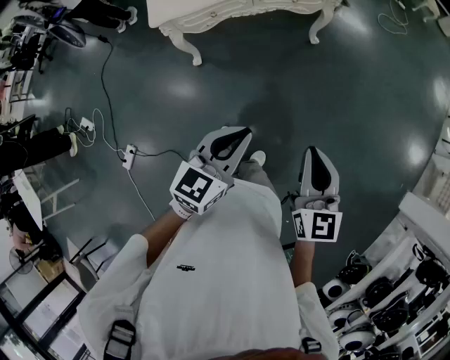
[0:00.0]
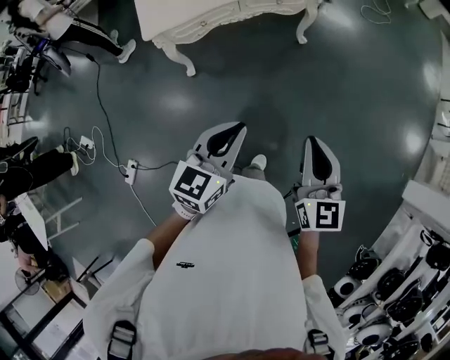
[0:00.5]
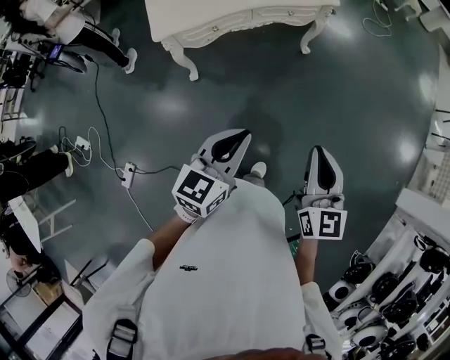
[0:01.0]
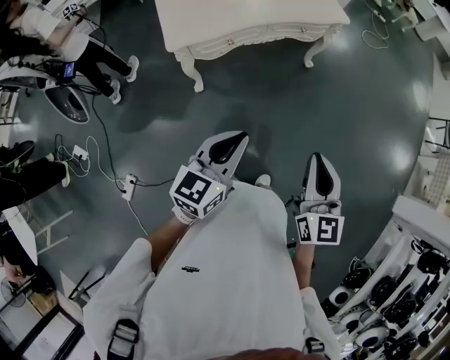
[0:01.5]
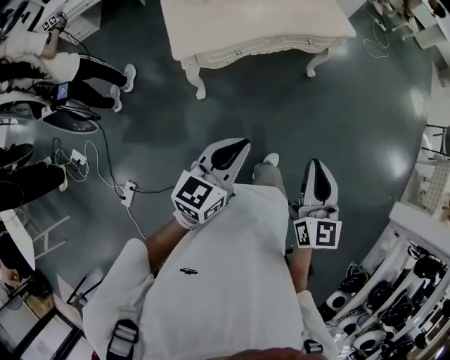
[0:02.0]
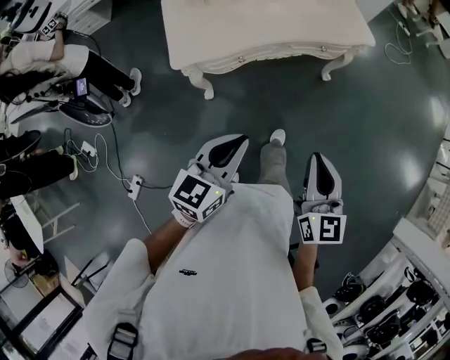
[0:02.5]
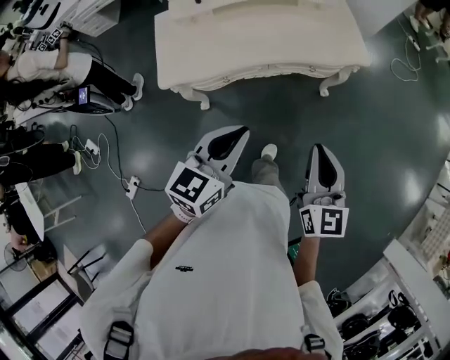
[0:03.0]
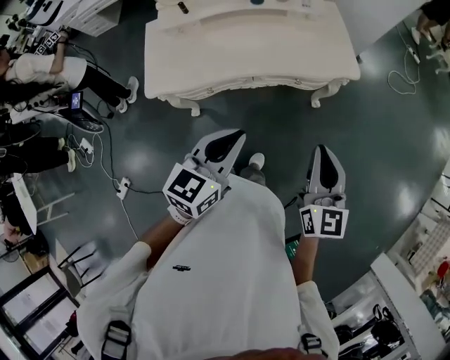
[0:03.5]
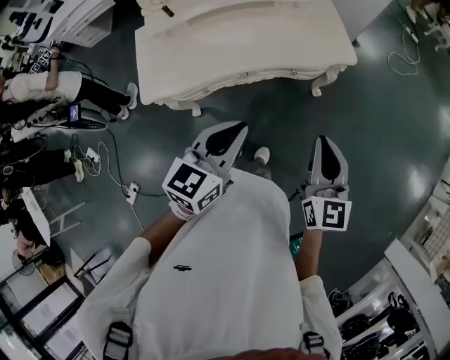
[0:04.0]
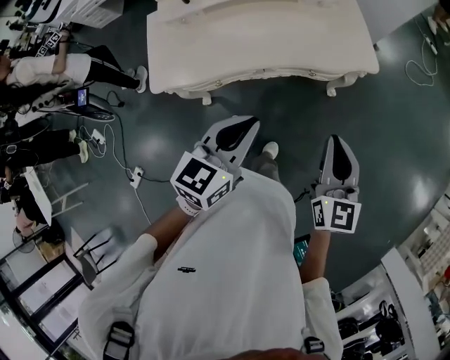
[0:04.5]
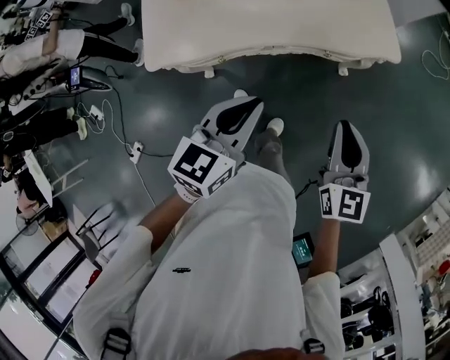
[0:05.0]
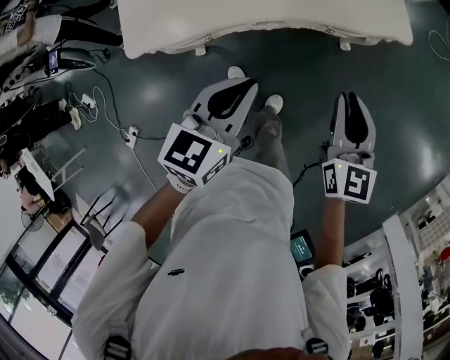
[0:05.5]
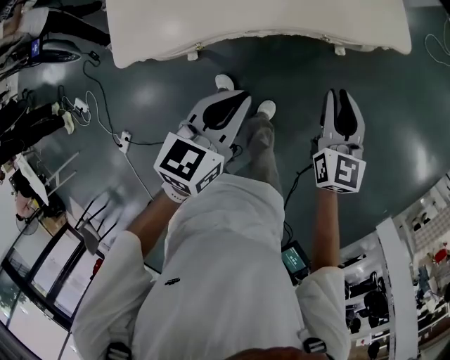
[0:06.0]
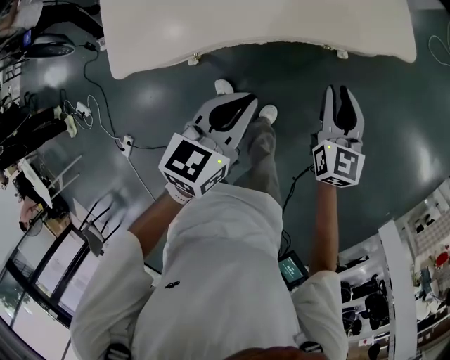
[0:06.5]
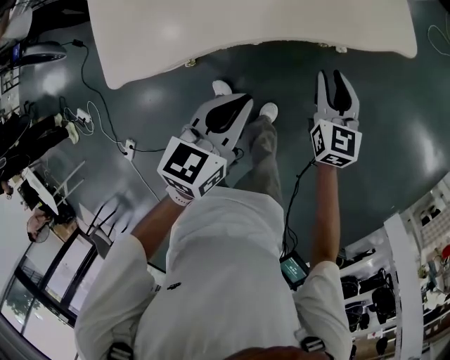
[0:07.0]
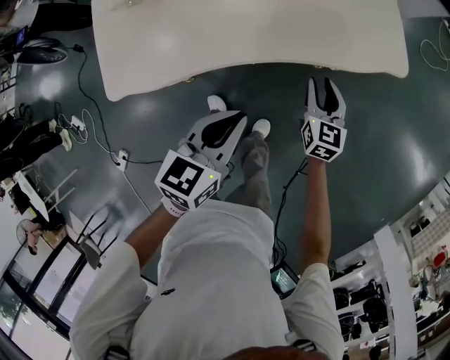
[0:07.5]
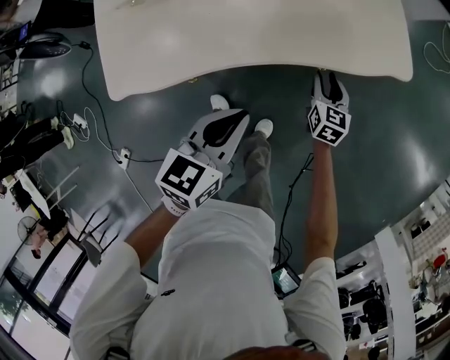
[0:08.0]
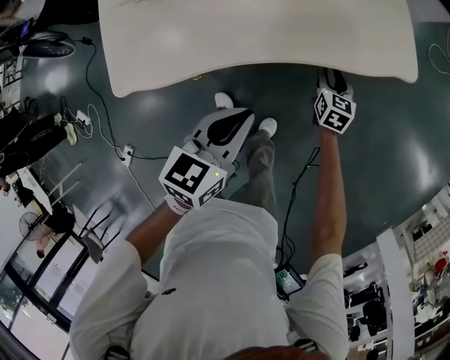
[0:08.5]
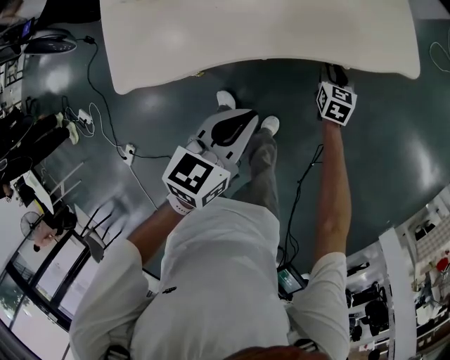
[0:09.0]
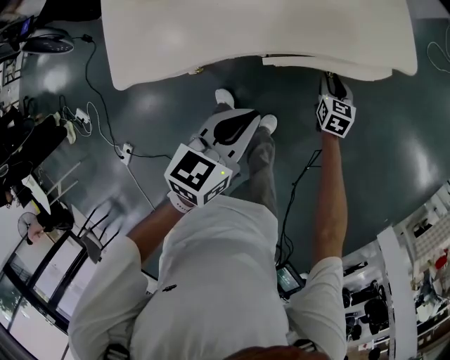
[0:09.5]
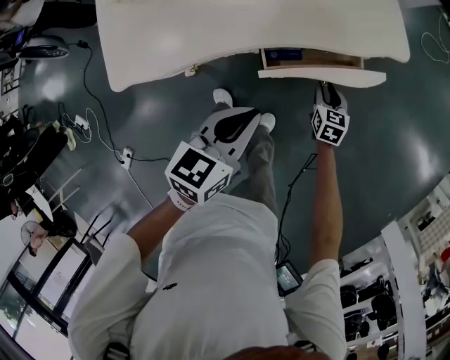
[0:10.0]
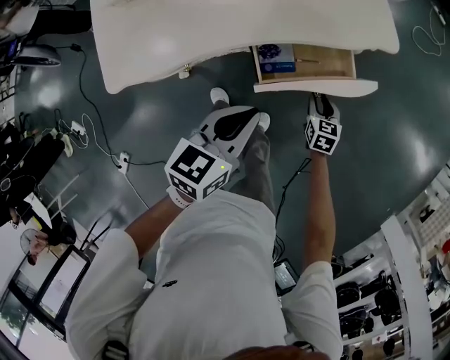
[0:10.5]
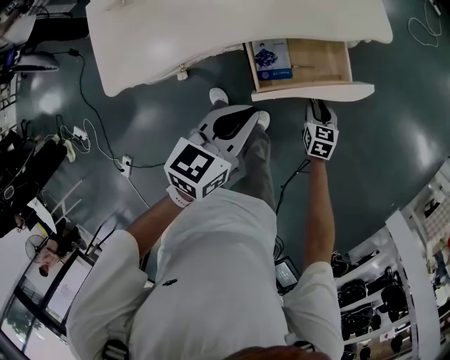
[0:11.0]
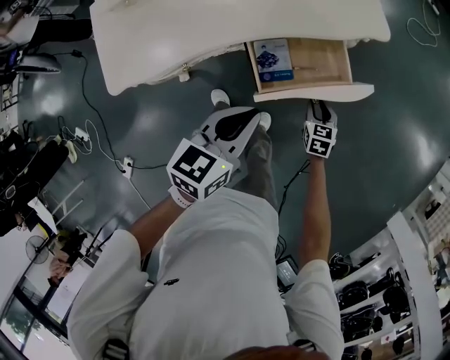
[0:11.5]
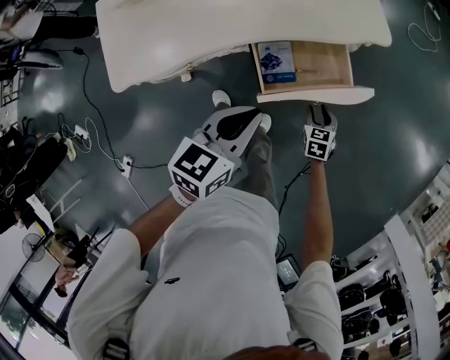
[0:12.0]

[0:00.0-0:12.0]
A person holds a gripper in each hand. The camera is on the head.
0:00.0 to 0:02.0: Both grippers travel together to the left, some 20 cm.
0:02.0 to 0:04.0: Both grippers travel together forward and to the right, roughly 40 cm.
0:04.0 to 0:06.0: Both grippers travel together downward and forward, some 20 cm. The right gripper opens.
0:06.0 to 0:08.0: The right gripper is displaced downward and forward by some 25 cm. Meanwhile the left gripper goes roughly 5 cm forward.
0:08.0 to 0:10.0: The left gripper ends up some 5 cm from where it was. Meanwhile the right gripper travels backward and to the right by some 10 cm.
0:10.0 to 0:12.0: The right gripper heads backward and to the right, covering some 10 cm.

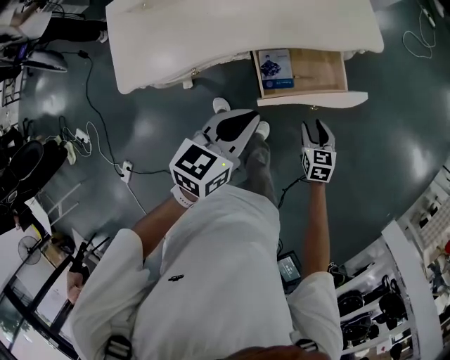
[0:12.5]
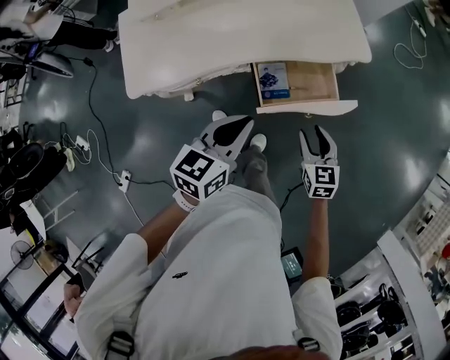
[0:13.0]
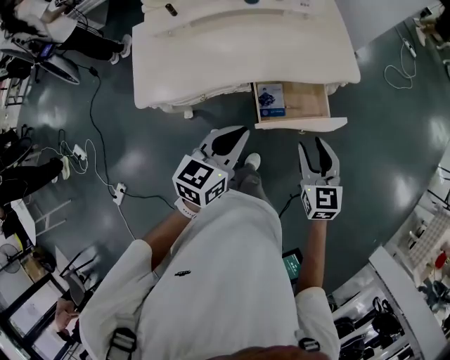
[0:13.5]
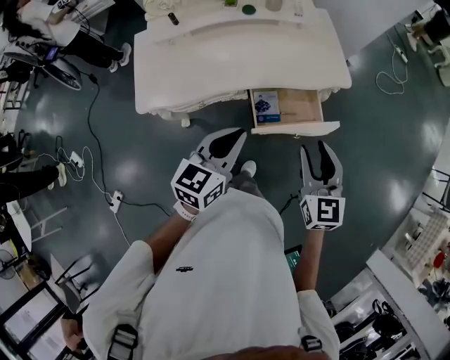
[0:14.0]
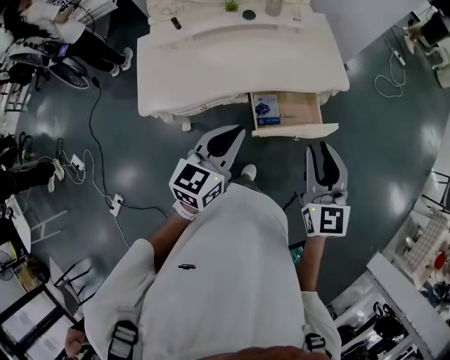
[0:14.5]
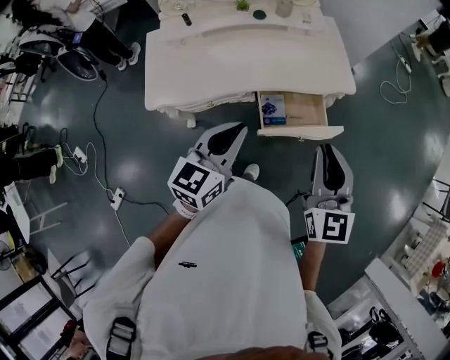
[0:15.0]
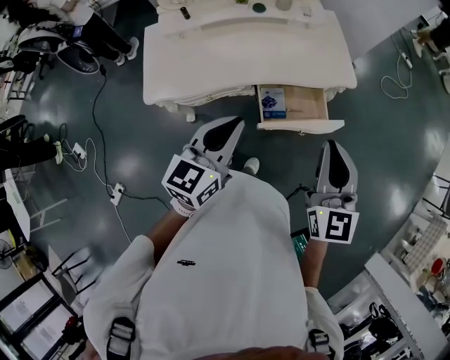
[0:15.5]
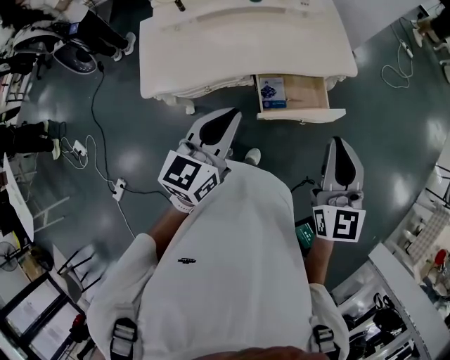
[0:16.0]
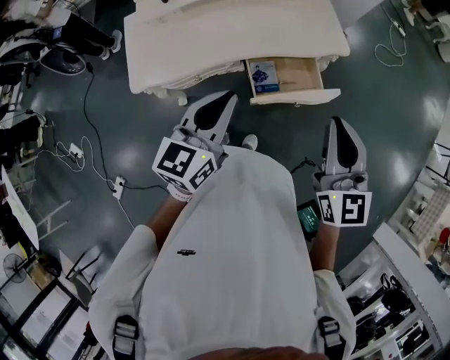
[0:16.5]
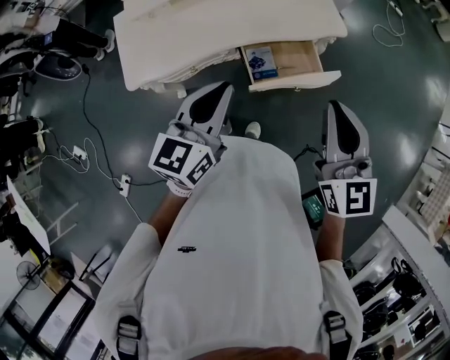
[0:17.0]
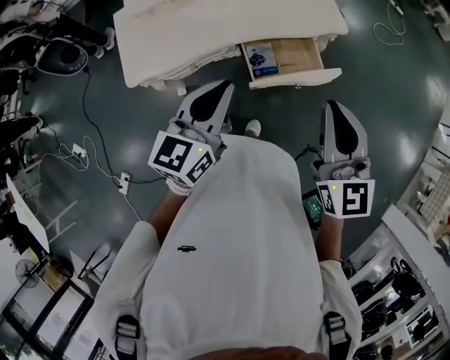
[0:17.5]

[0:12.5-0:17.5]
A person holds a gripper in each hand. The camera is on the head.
0:12.5 to 0:15.0: The right gripper is displaced upward by about 40 cm, tips its fingers upward by approximately 40 degrees, and closes; the left gripper shifts some 15 cm upward, and changes its angle by about 20 degrees.
0:15.0 to 0:17.5: There are only small adjustments of the grippers.

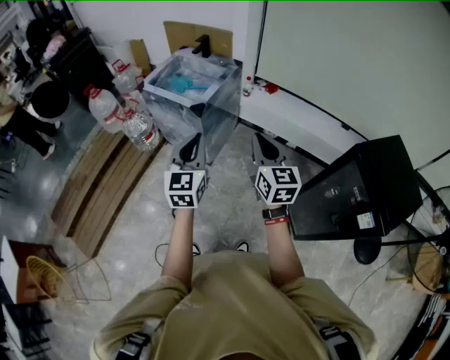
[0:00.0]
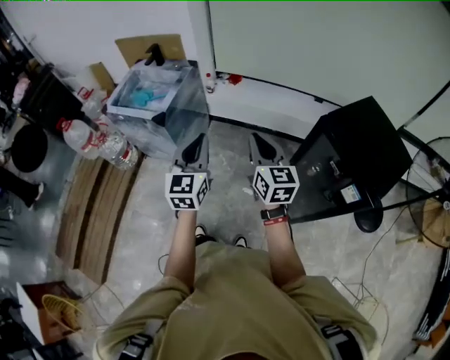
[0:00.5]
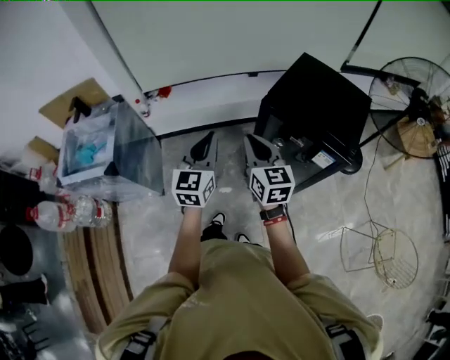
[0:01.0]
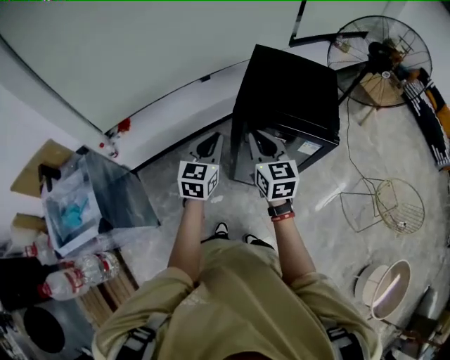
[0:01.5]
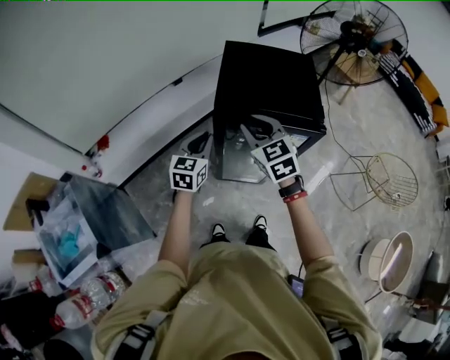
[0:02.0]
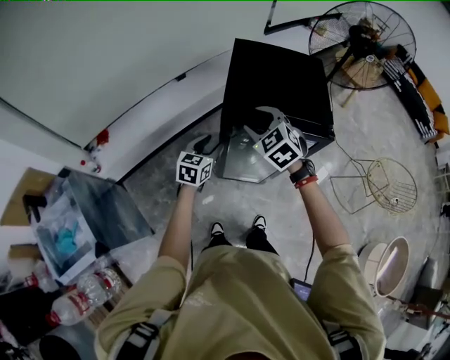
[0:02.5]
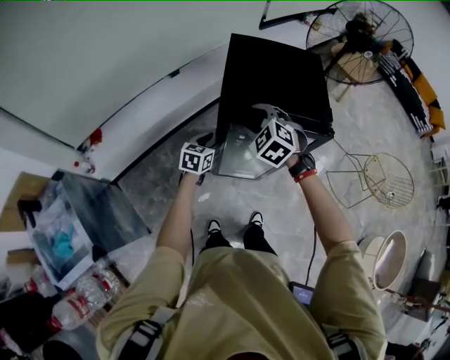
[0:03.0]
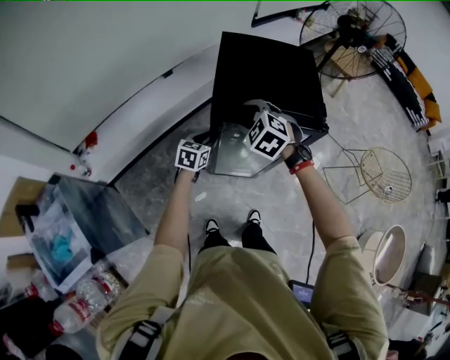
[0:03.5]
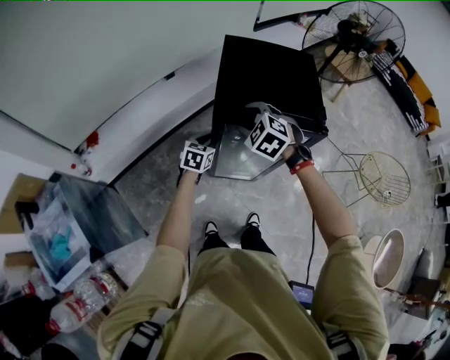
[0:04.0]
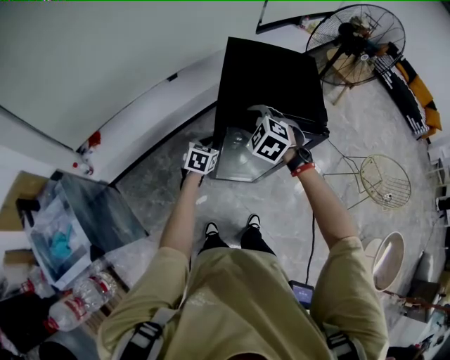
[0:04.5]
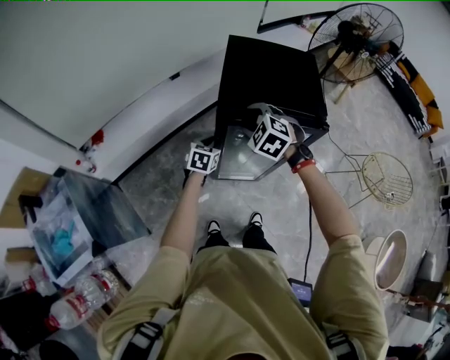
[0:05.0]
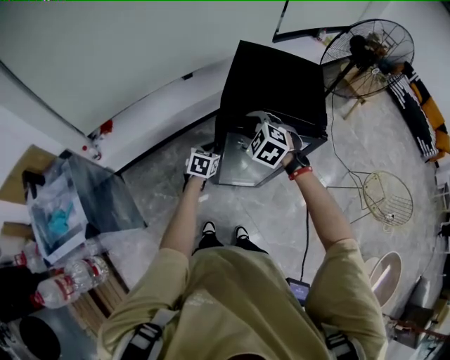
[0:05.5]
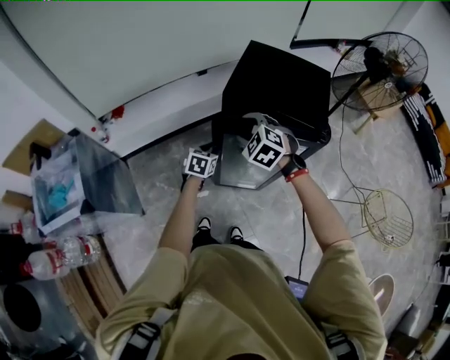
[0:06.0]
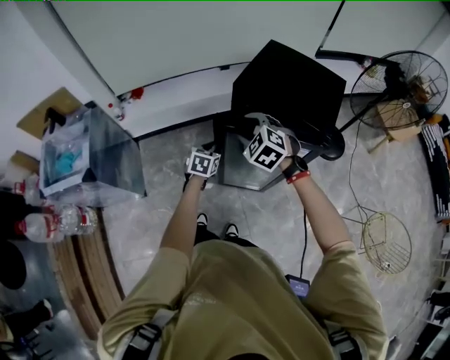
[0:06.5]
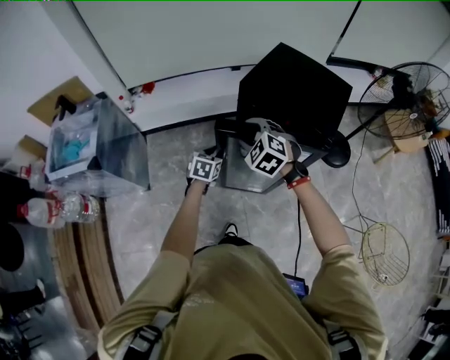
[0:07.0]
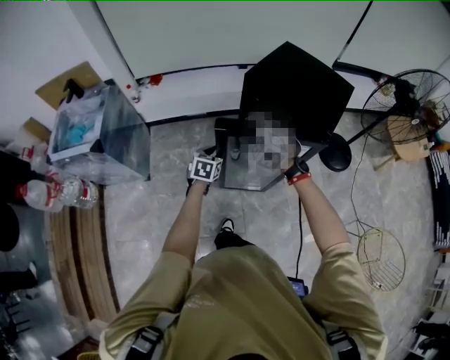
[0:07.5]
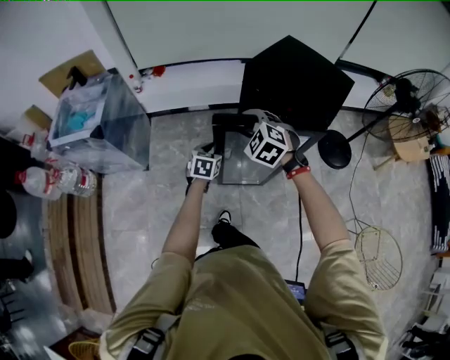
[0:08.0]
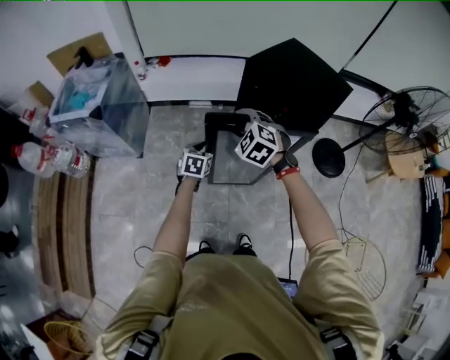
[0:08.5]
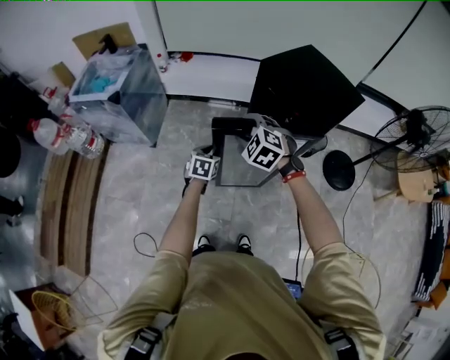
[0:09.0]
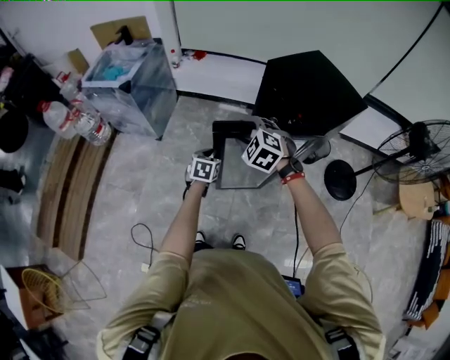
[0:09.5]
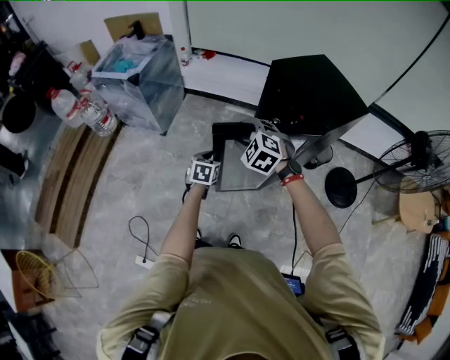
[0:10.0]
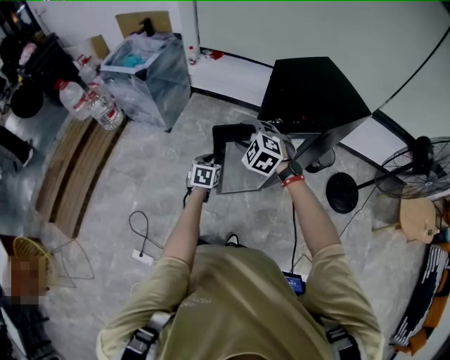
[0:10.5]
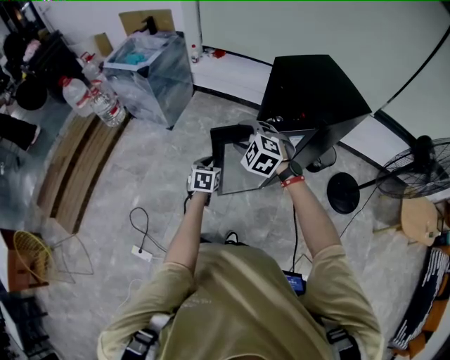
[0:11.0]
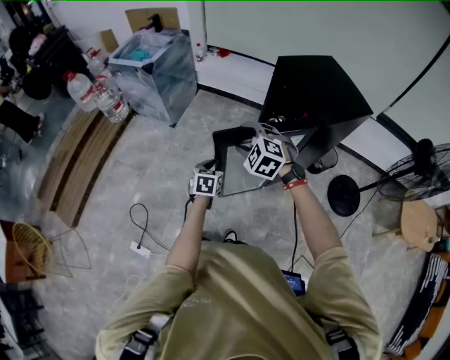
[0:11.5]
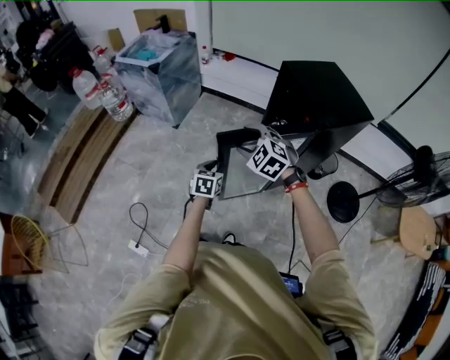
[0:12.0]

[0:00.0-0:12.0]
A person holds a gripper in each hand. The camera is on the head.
0:00.0 to 0:02.0: Both grippers are carried some 50 cm. The right gripper changes its angle by approximately 60 degrees; the left gripper rotates roughly 80 degrees.
0:02.0 to 0:04.0: The right gripper heads downward, covering roughly 5 cm, changes its angle by approximately 40 degrees, and opens its fingers, while the left gripper goes approximately 15 cm downward, and opens, then closes once more.
0:04.0 to 0:06.0: Both grippers travel together backward, roughly 10 cm.
0:06.0 to 0:08.0: The left gripper ends up some 15 cm from where it was, and turns by approximately 30 degrees. Meanwhile the right gripper shifts by about 15 cm, and changes its angle by approximately 20 degrees.
0:08.0 to 0:10.0: Both grippers move backward, about 15 cm. The right gripper changes its angle by about 20 degrees; the left gripper rotates roughly 20 degrees.
0:10.0 to 0:12.0: Both grippers move backward, about 10 cm.
